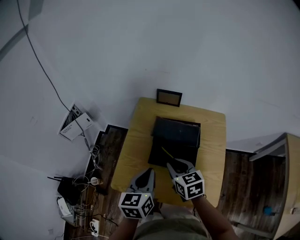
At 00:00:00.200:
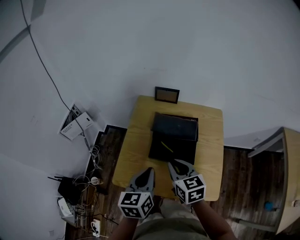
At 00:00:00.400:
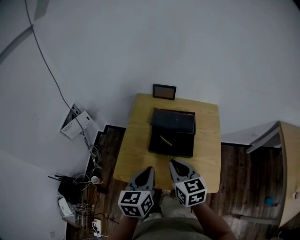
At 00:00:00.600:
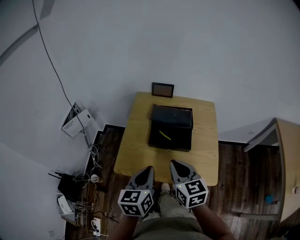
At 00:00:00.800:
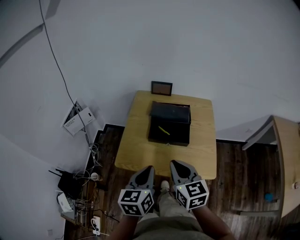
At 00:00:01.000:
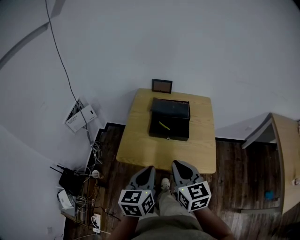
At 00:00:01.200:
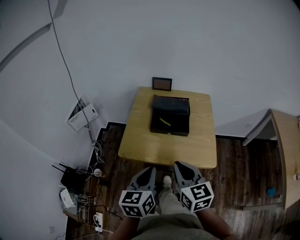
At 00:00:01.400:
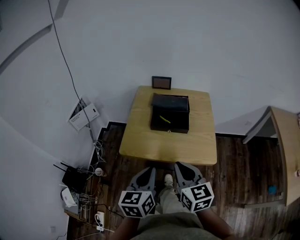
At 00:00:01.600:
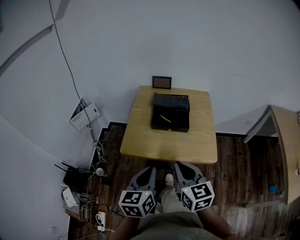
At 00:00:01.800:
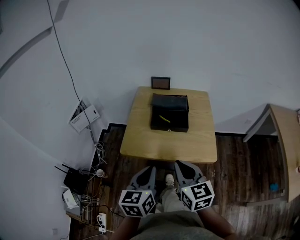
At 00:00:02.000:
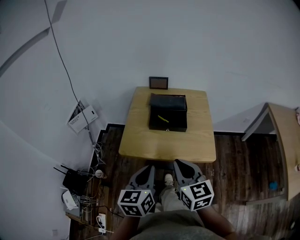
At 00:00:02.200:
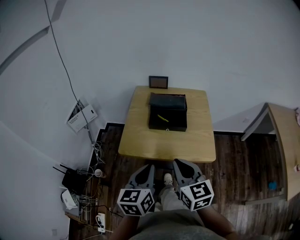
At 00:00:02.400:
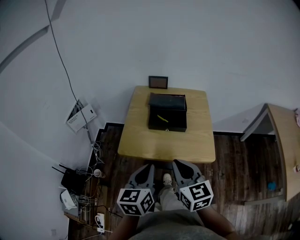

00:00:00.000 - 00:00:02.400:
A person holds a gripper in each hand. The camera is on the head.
00:00:00.000 - 00:00:01.200: The right gripper goes roughly 30 cm backward and upward, and swivels roughly 20 degrees; the left gripper moves backward, roughly 25 cm.
00:00:01.200 - 00:00:02.400: The grippers move only a little.

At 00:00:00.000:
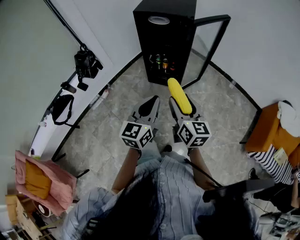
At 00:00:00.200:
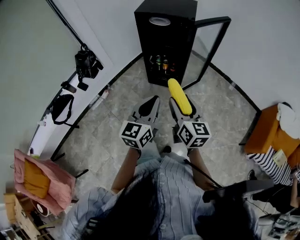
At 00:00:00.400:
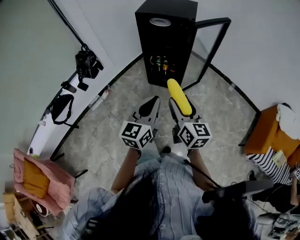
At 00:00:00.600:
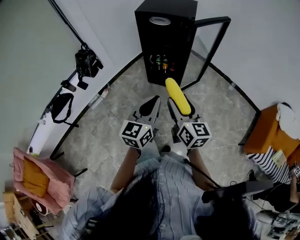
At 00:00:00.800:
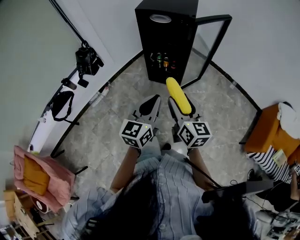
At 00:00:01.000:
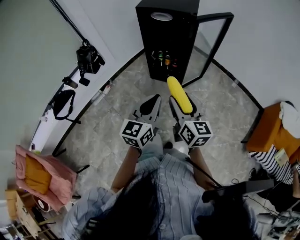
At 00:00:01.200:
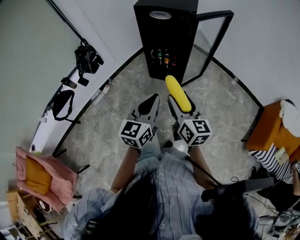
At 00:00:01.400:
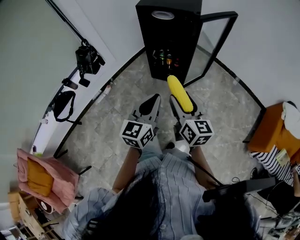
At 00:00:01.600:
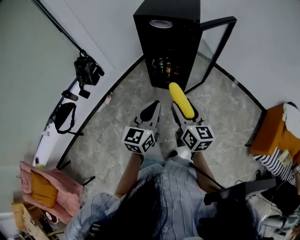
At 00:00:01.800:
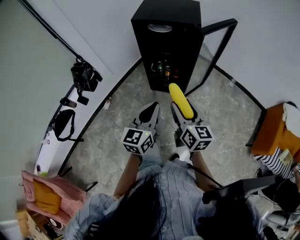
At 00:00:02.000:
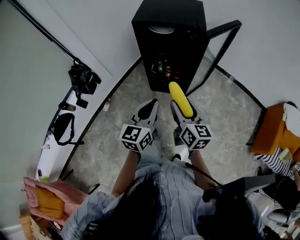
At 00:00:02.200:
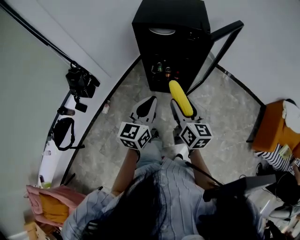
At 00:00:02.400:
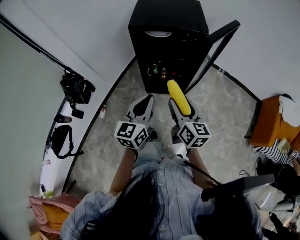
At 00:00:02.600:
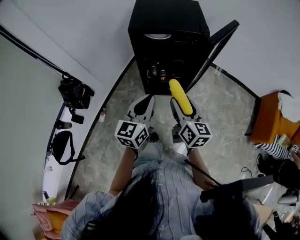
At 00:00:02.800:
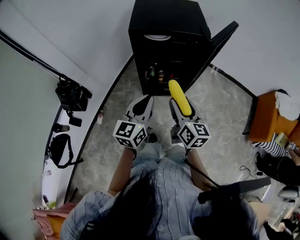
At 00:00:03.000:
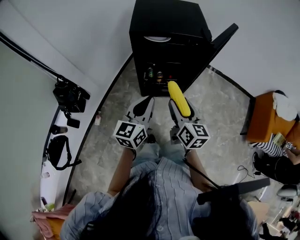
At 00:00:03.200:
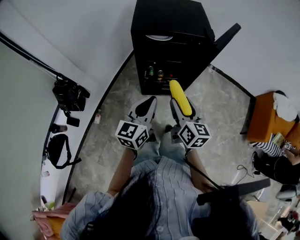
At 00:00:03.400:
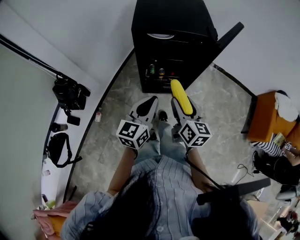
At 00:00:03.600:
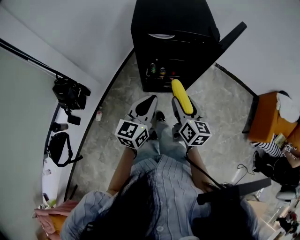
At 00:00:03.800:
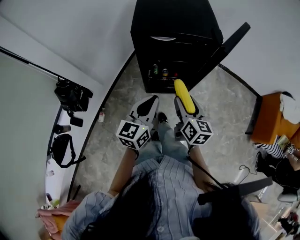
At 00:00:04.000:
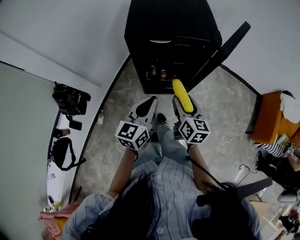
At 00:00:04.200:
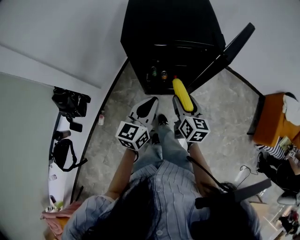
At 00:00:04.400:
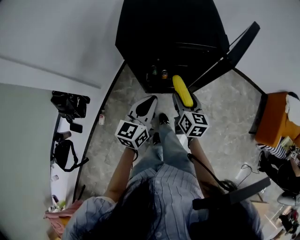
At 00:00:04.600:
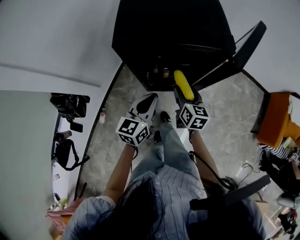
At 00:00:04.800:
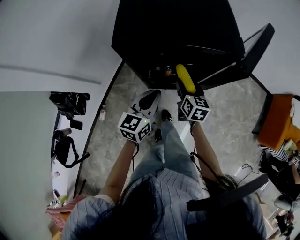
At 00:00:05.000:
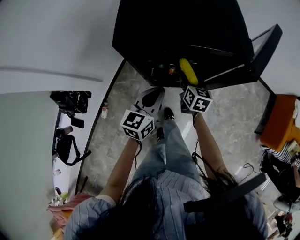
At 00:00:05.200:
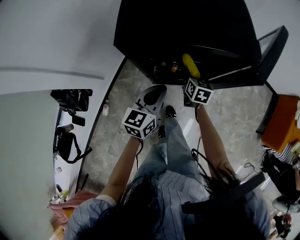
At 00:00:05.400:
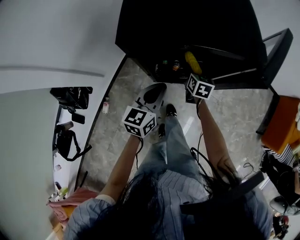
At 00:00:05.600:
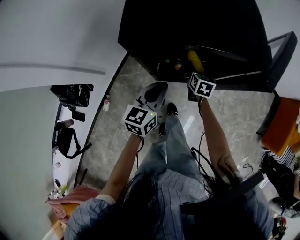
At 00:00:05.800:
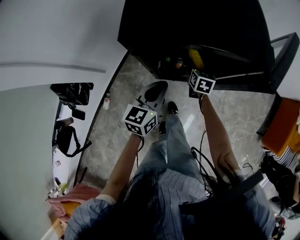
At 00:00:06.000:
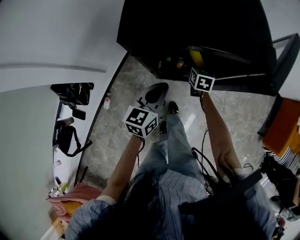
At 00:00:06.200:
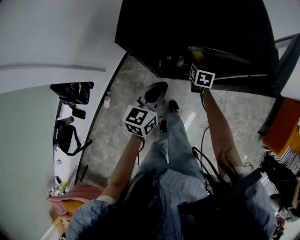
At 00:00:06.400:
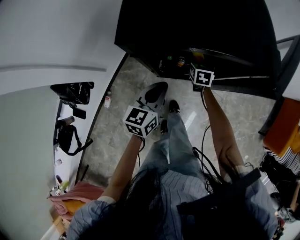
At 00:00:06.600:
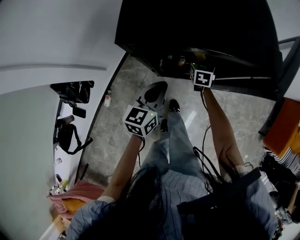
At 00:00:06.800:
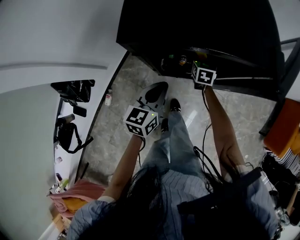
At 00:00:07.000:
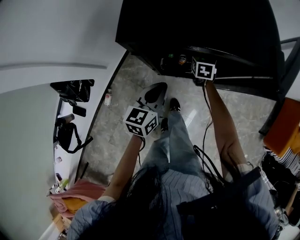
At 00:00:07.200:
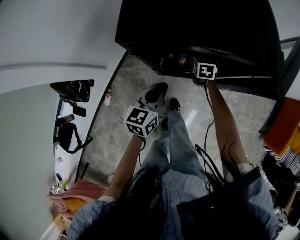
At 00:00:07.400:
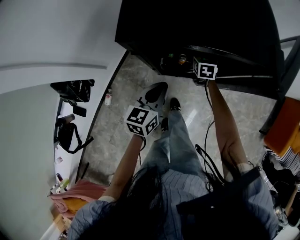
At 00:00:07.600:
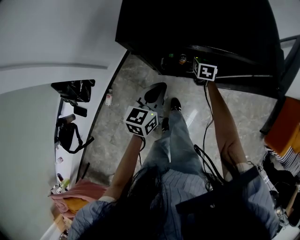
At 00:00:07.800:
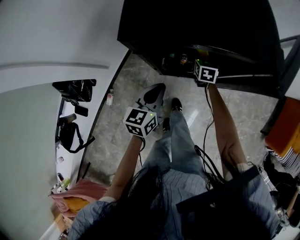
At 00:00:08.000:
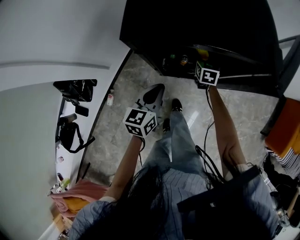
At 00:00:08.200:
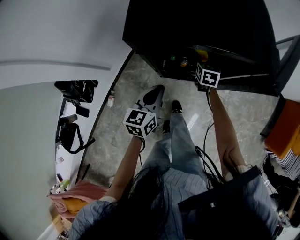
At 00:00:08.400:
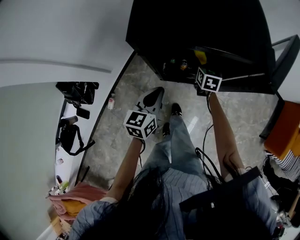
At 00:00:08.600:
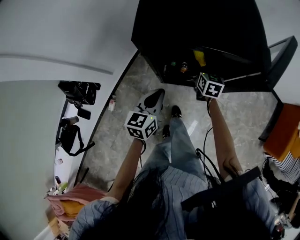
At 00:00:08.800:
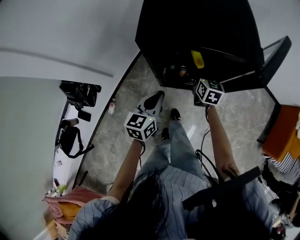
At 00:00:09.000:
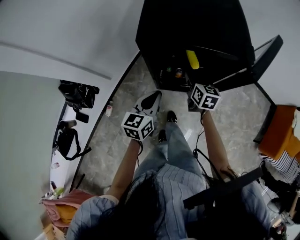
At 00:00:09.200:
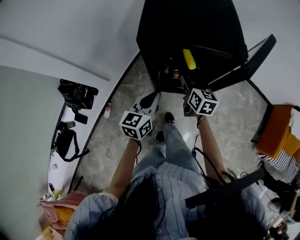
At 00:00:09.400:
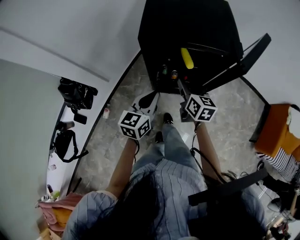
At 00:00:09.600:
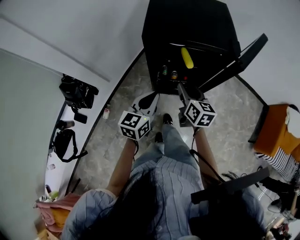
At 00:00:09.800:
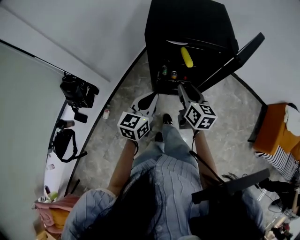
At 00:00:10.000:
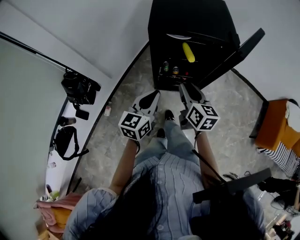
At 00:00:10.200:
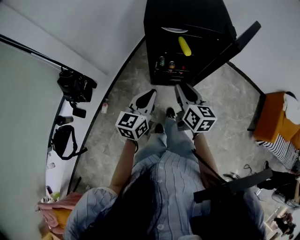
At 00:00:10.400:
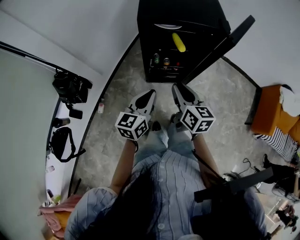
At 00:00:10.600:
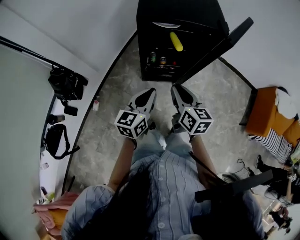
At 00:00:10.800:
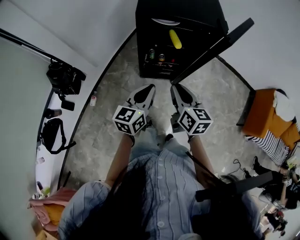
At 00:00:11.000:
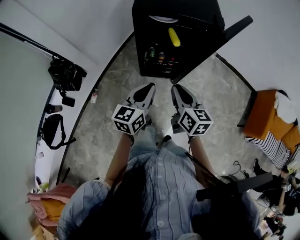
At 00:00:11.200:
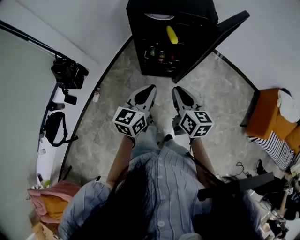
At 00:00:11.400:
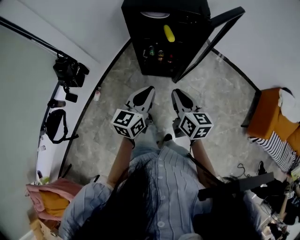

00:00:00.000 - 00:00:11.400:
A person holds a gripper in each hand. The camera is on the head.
00:00:00.000 - 00:00:01.400: The grippers move only a little.
00:00:01.400 - 00:00:02.800: The grippers both shift forward and to the left by about 25 cm.
00:00:02.800 - 00:00:04.200: Both grippers move forward and downward, some 15 cm.
00:00:04.200 - 00:00:05.600: The right gripper shifts approximately 30 cm forward and downward. Meanwhile the left gripper goes some 15 cm forward and downward.
00:00:05.600 - 00:00:07.200: The right gripper goes approximately 5 cm forward.
00:00:07.200 - 00:00:08.600: The right gripper is displaced upward and backward by about 10 cm.
00:00:08.600 - 00:00:10.000: The right gripper heads backward and upward, covering some 30 cm, rotates about 20 degrees, and closes its fingers; the left gripper heads backward and upward, covering approximately 20 cm.
00:00:10.000 - 00:00:11.400: The right gripper shifts approximately 20 cm backward and to the right. Meanwhile the left gripper shifts roughly 15 cm to the right and backward.

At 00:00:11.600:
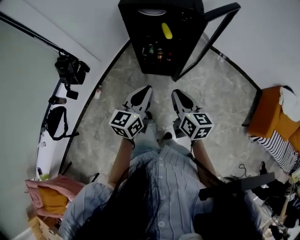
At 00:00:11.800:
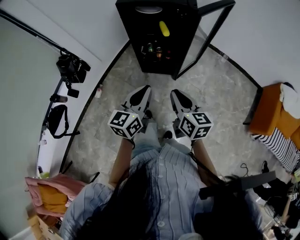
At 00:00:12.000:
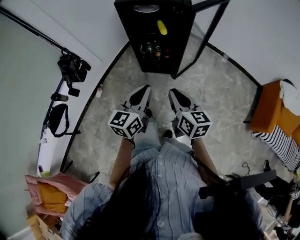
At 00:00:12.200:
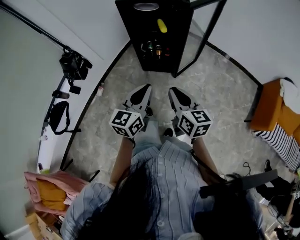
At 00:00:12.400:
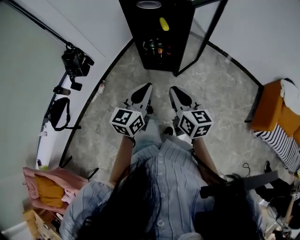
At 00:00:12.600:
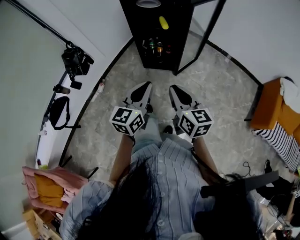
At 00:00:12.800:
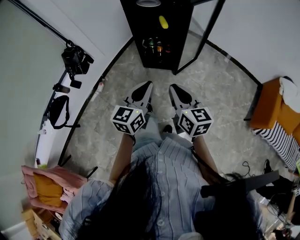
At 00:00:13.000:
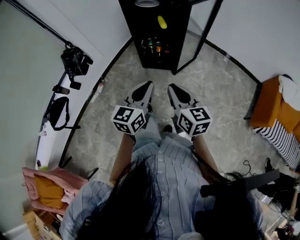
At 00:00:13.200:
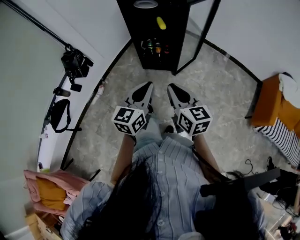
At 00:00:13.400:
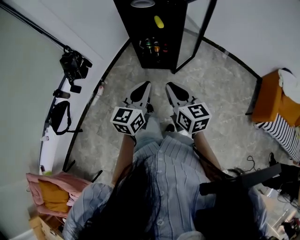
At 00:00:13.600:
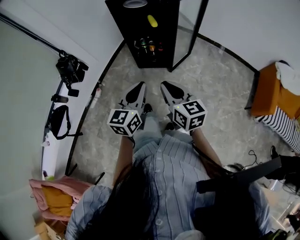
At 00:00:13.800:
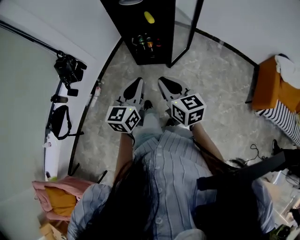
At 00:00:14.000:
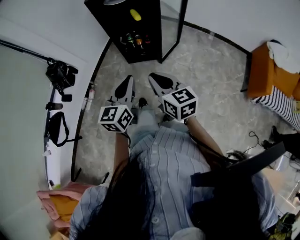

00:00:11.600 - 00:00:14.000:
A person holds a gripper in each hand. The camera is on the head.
00:00:11.600 - 00:00:12.800: The grippers both shift backward by roughly 15 cm.
00:00:12.800 - 00:00:14.000: The grippers move only a little.

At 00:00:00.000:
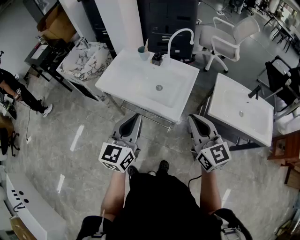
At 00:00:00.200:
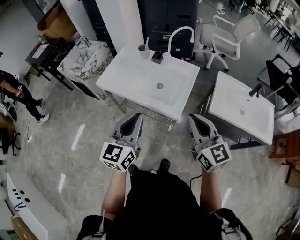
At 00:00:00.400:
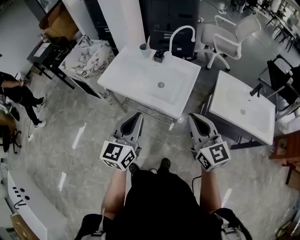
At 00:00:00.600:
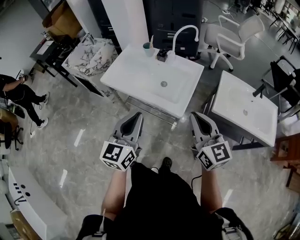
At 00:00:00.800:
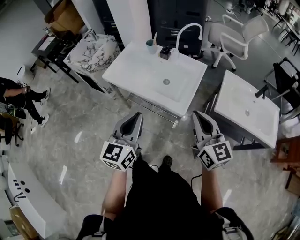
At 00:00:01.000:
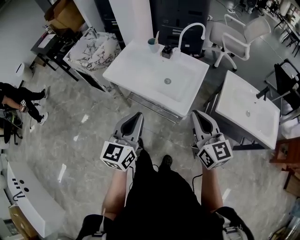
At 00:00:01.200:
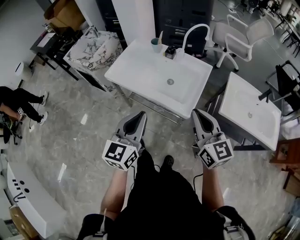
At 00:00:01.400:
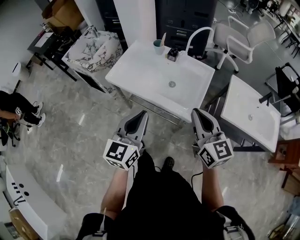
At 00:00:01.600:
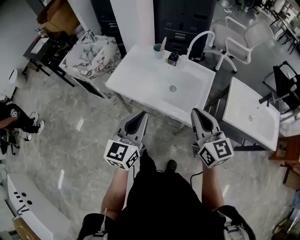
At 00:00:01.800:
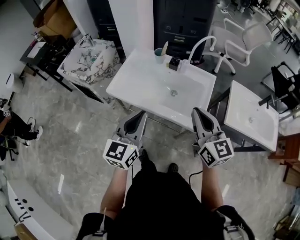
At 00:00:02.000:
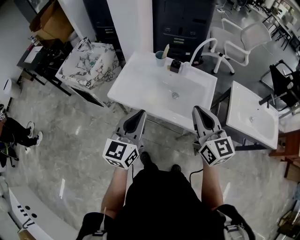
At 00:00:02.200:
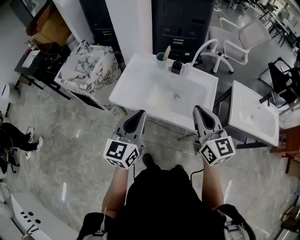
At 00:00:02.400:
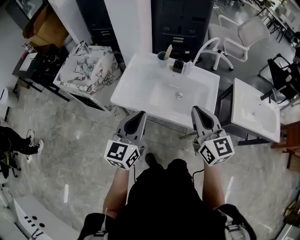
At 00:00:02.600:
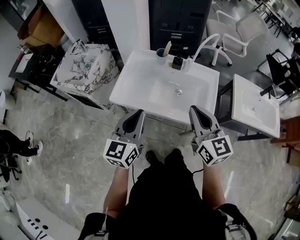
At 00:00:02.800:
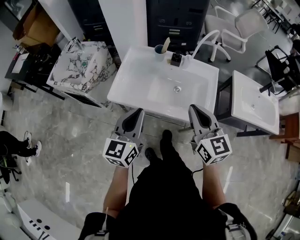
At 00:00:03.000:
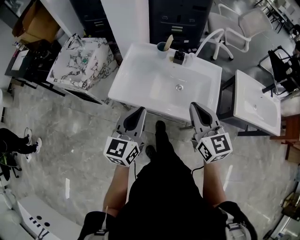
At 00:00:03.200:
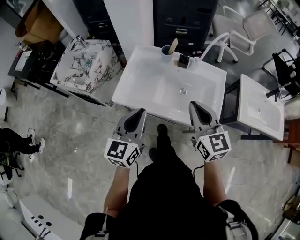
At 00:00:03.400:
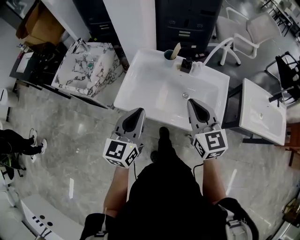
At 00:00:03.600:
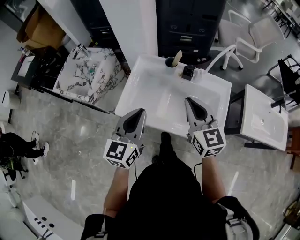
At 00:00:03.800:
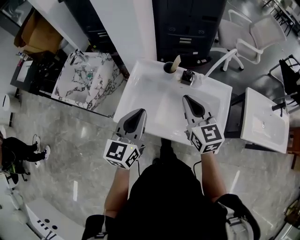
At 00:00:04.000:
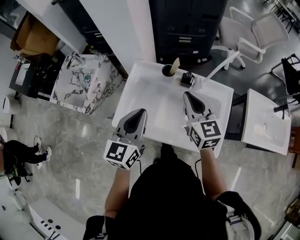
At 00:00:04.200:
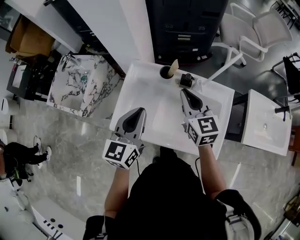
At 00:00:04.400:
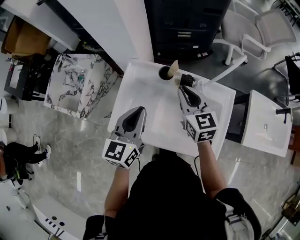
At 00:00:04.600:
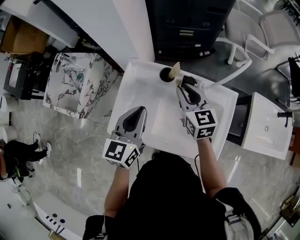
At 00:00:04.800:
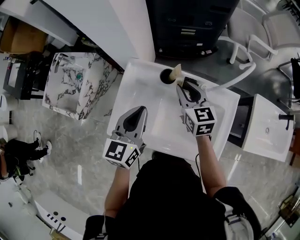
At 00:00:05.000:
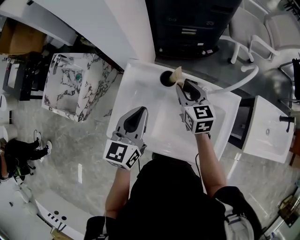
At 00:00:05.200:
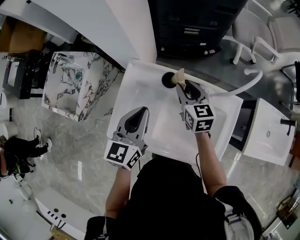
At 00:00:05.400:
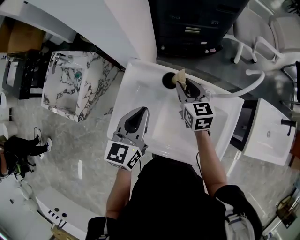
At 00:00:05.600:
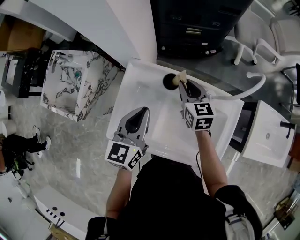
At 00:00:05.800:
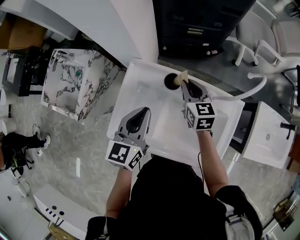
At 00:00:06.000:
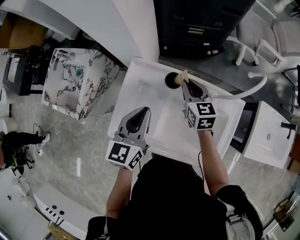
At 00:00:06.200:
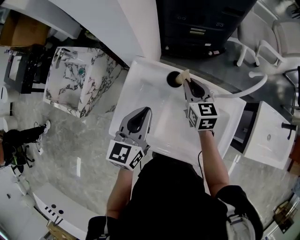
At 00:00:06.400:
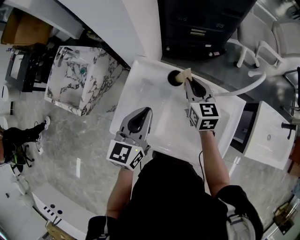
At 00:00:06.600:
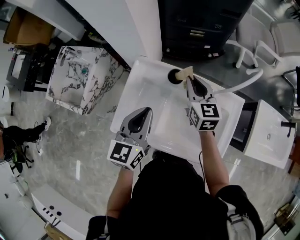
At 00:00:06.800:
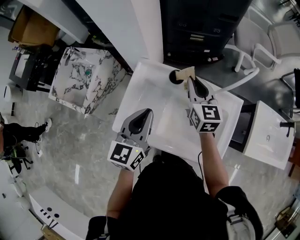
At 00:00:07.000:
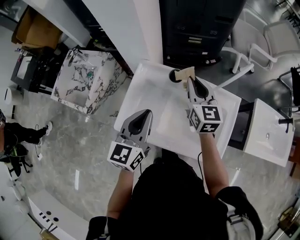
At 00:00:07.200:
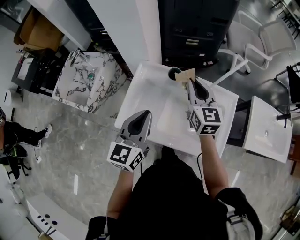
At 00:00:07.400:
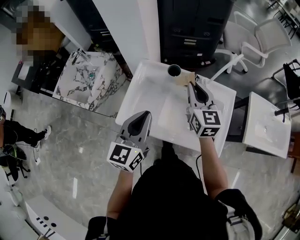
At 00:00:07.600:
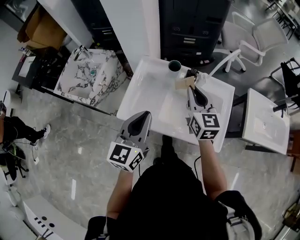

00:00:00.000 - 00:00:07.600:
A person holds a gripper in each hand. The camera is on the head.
00:00:00.000 - 00:00:01.600: Both grippers move to the left and forward, some 10 cm.
00:00:01.600 - 00:00:03.000: Both grippers travel together to the left and forward, roughly 15 cm.
00:00:03.000 - 00:00:04.600: Both grippers move forward, some 30 cm.
00:00:04.600 - 00:00:06.000: The left gripper shifts by roughly 5 cm, while the right gripper is displaced forward and downward by approximately 10 cm.
00:00:06.000 - 00:00:07.600: The two grippers go about 20 cm backward and upward.
